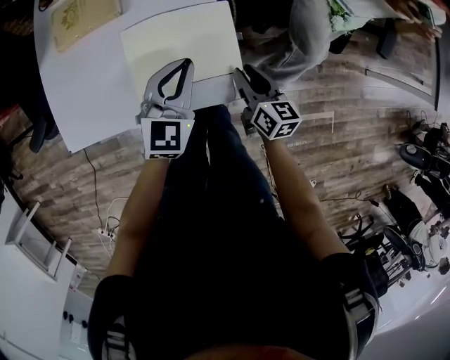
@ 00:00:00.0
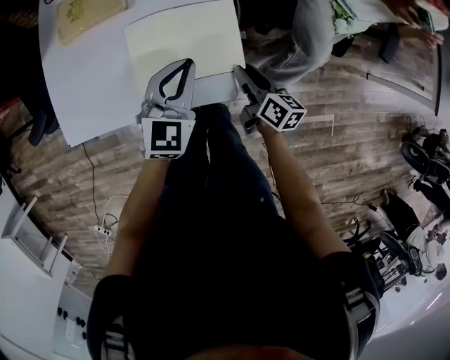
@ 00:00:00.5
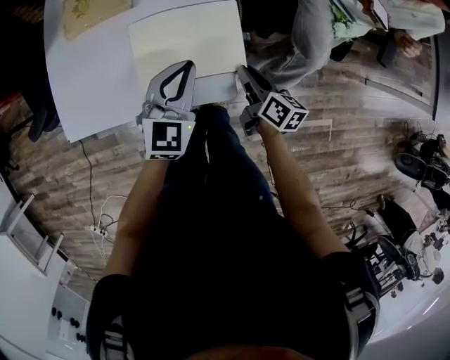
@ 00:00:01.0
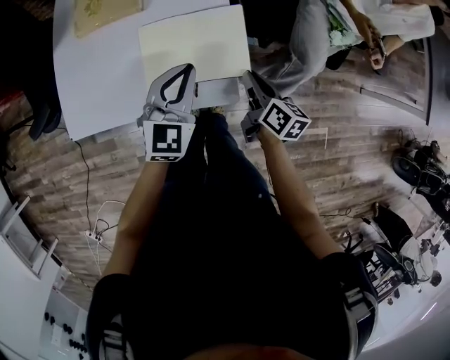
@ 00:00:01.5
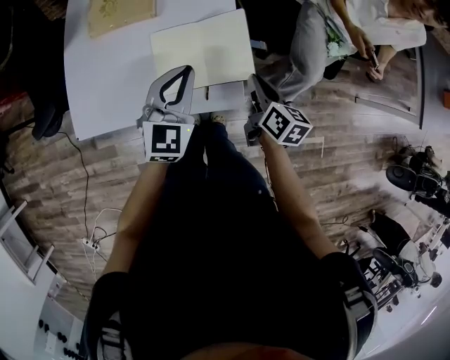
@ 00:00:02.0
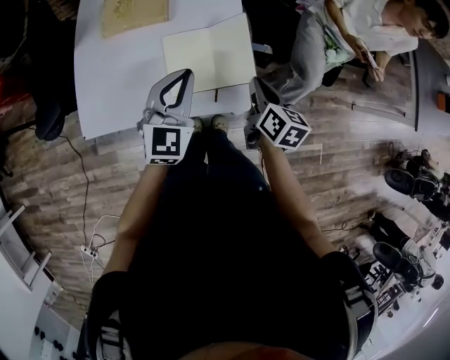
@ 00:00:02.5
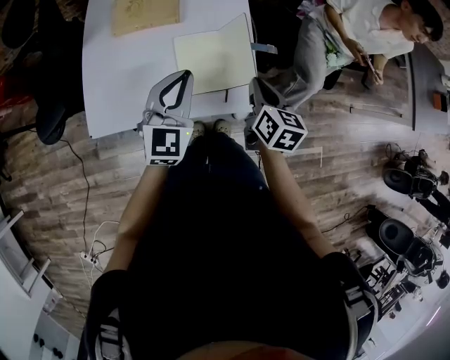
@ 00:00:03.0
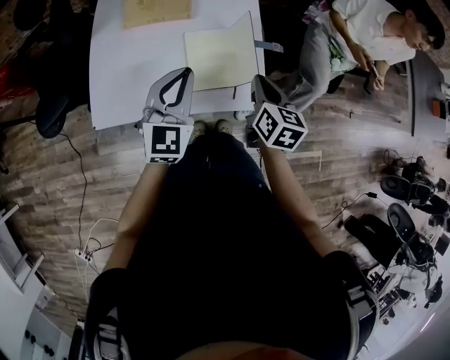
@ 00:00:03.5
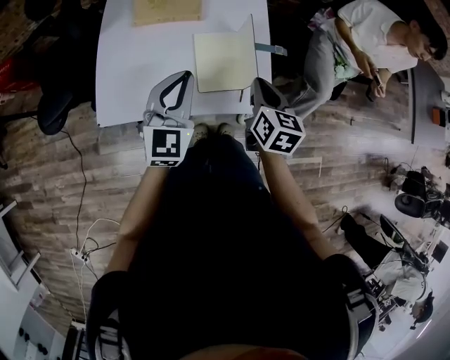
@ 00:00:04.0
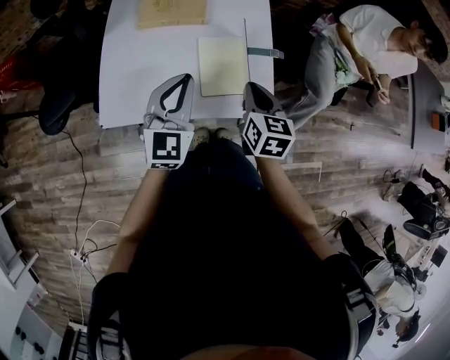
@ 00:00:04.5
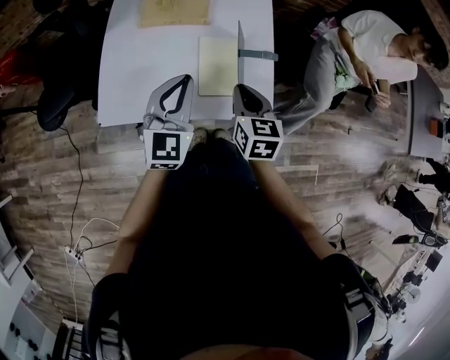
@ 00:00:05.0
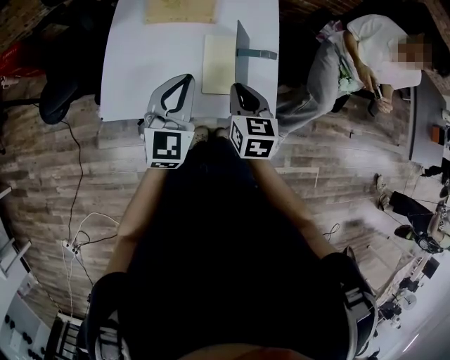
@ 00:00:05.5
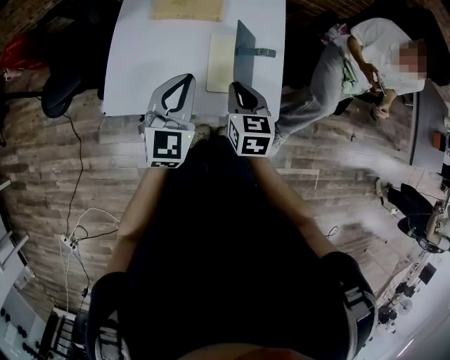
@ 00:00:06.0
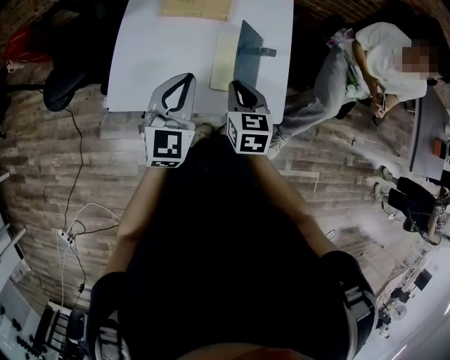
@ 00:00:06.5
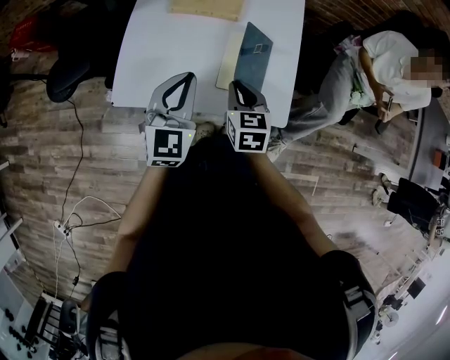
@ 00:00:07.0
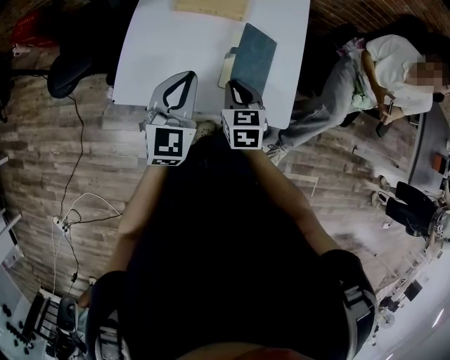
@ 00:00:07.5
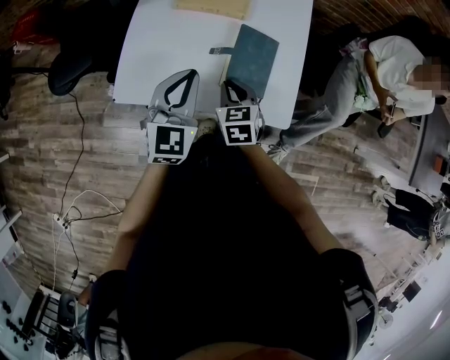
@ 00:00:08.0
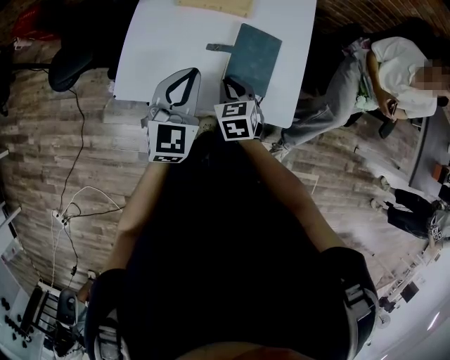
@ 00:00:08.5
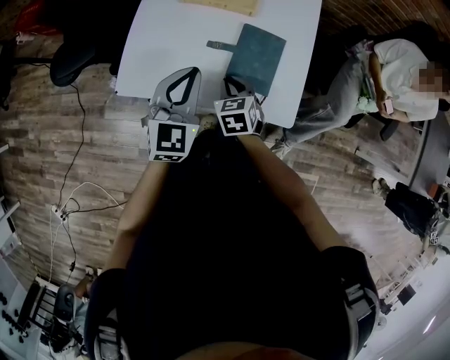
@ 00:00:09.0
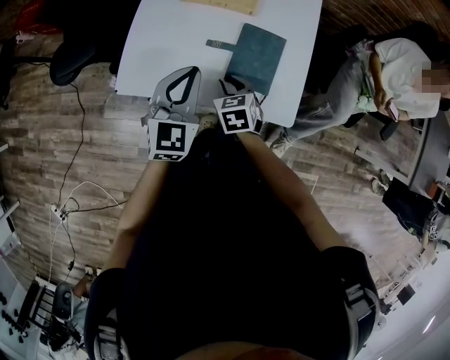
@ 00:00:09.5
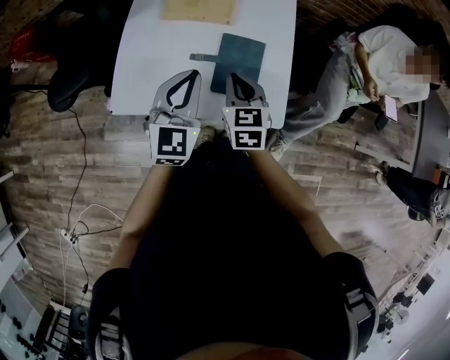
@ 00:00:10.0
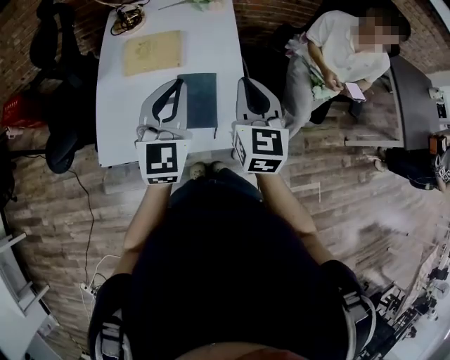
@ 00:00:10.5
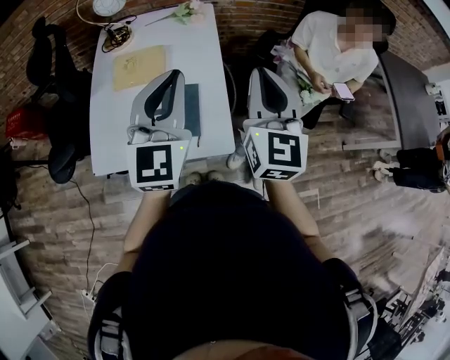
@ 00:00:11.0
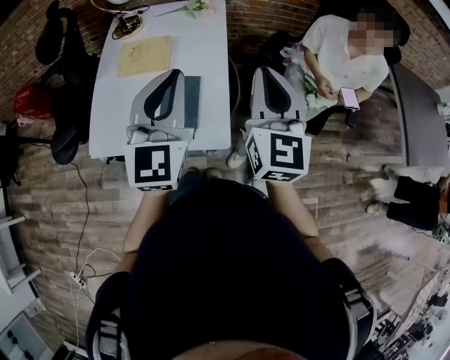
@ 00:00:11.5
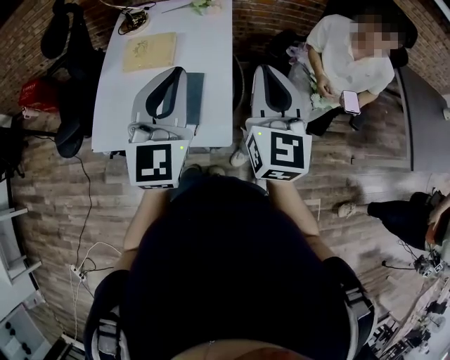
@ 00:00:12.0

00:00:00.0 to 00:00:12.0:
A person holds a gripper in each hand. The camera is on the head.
00:00:00.0 to 00:00:02.0: The left gripper moves upward and to the left, approximately 10 cm; the right gripper moves upward, roughly 10 cm.
00:00:02.0 to 00:00:04.0: The right gripper moves to the left and upward, approximately 10 cm, and rotates approximately 20 degrees; the left gripper is displaced to the left by approximately 10 cm.
00:00:04.0 to 00:00:06.0: The right gripper travels to the left by about 10 cm.
00:00:06.0 to 00:00:08.0: The right gripper goes approximately 10 cm to the left and downward.
00:00:08.0 to 00:00:10.0: The right gripper travels upward by approximately 5 cm.
00:00:10.0 to 00:00:12.0: The grippers both shift upward and to the right by approximately 30 cm. The right gripper points its fingers some 30 degrees further upward.

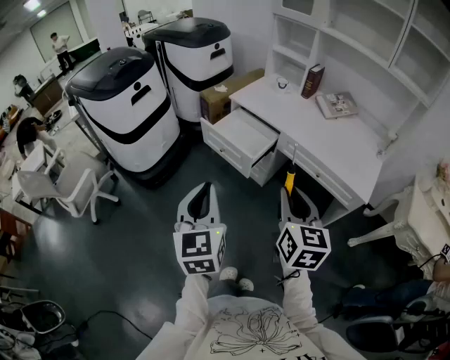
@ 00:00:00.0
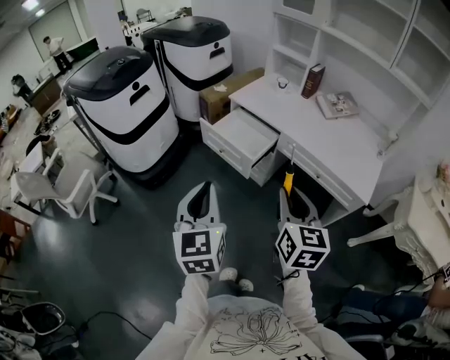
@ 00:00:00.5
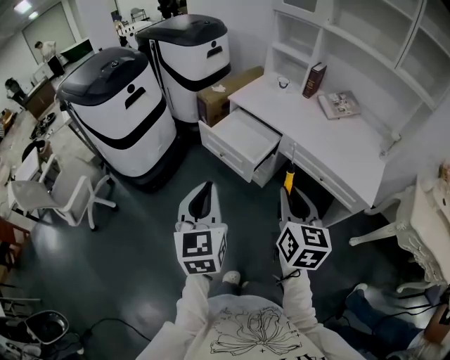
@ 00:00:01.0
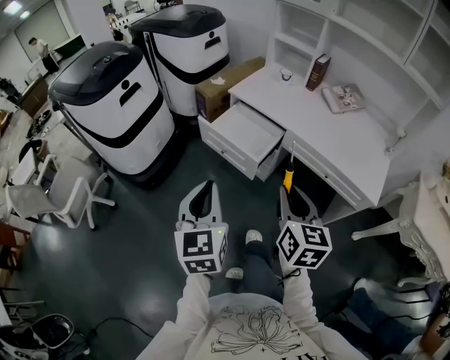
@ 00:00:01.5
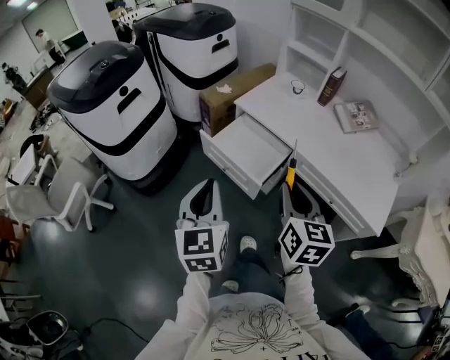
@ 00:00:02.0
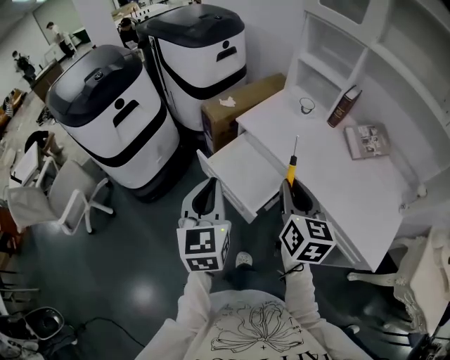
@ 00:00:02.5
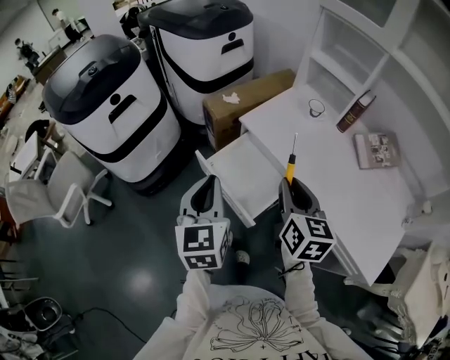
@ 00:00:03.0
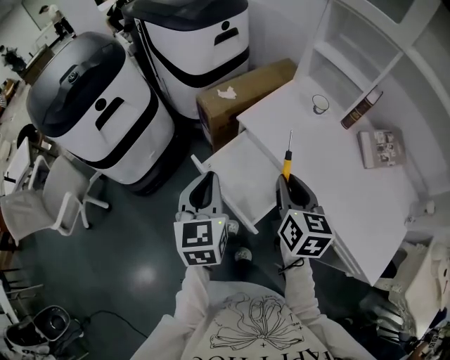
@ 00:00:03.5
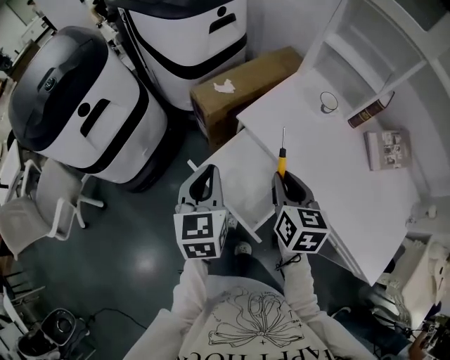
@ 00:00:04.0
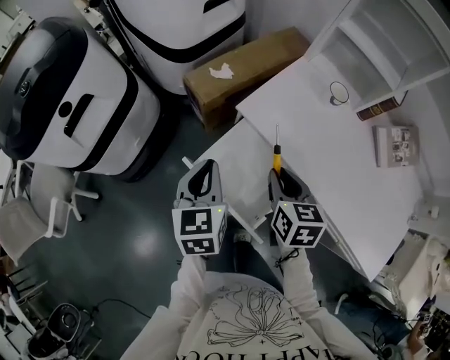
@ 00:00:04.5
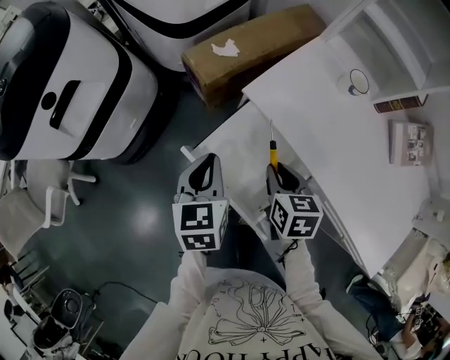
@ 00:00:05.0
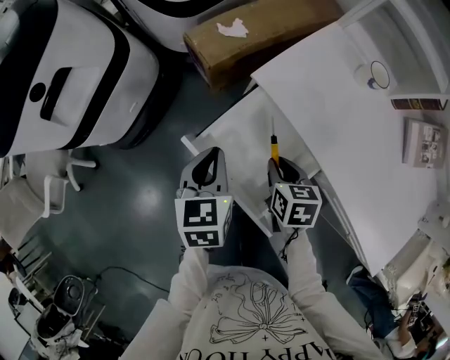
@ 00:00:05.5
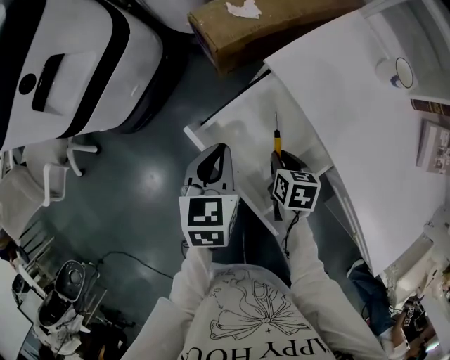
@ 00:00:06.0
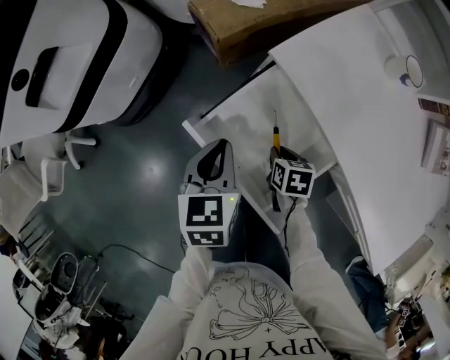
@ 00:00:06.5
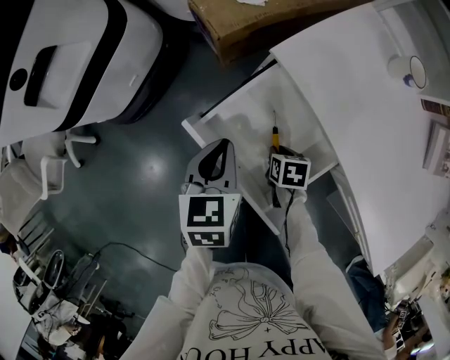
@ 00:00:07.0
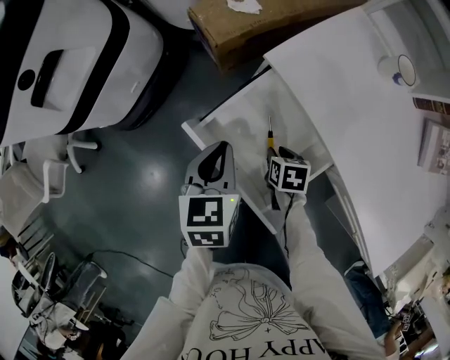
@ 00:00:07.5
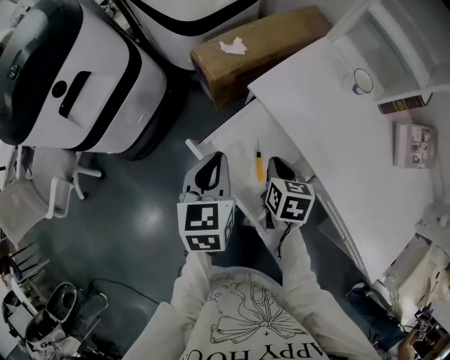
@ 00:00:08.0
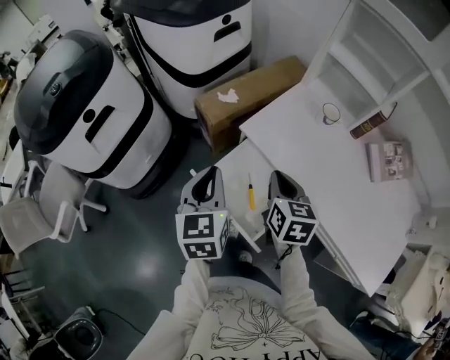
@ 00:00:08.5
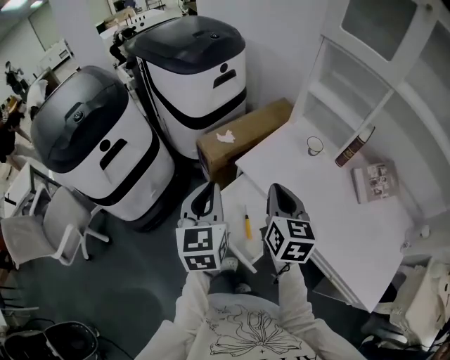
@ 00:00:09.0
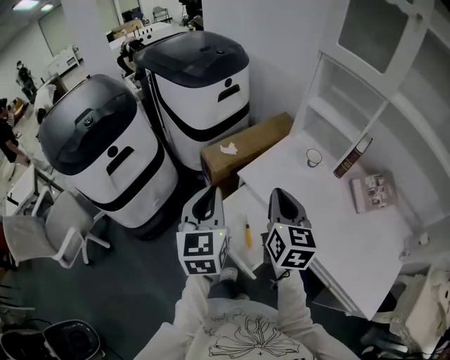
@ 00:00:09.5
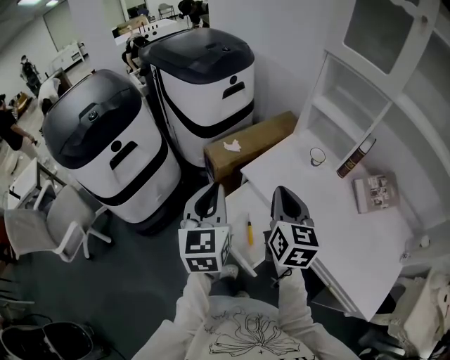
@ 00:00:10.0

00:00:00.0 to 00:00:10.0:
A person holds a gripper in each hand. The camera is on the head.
00:00:00.0 to 00:00:02.0: Both grippers move forward, roughly 20 cm.
00:00:02.0 to 00:00:04.0: Both grippers travel together forward, roughly 35 cm.
00:00:04.0 to 00:00:06.0: The left gripper travels downward by some 20 cm, and rotates about 20 degrees. The right gripper moves downward, roughly 30 cm, and angles its fingers downward, by some 30 degrees.
00:00:06.0 to 00:00:08.0: Both grippers move upward, some 10 cm.
00:00:08.0 to 00:00:10.0: Both grippers move upward, roughly 30 cm. The right gripper points its fingers about 40 degrees further upward, while the left gripper turns by some 30 degrees.

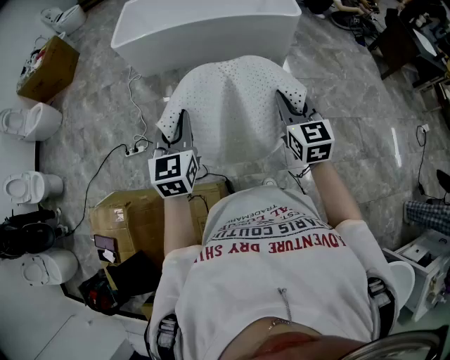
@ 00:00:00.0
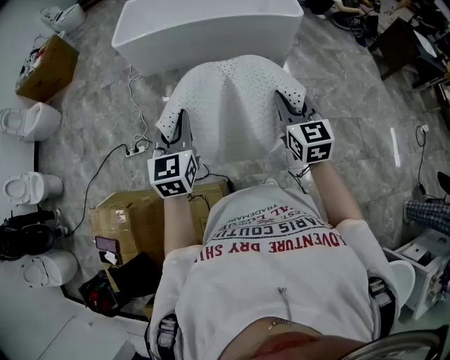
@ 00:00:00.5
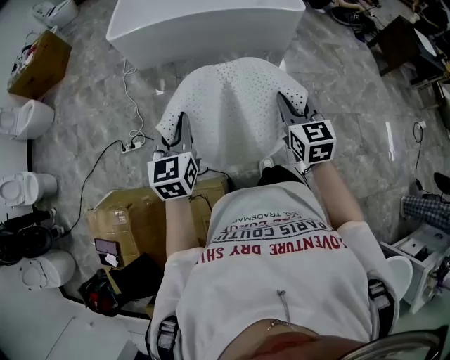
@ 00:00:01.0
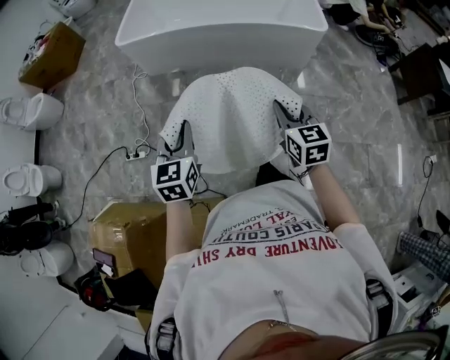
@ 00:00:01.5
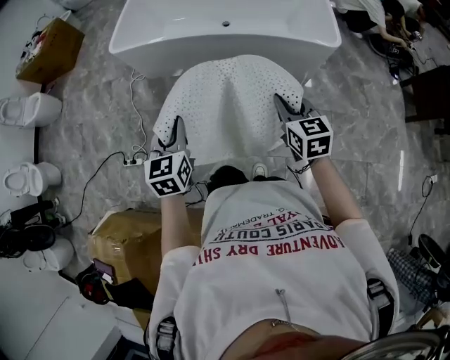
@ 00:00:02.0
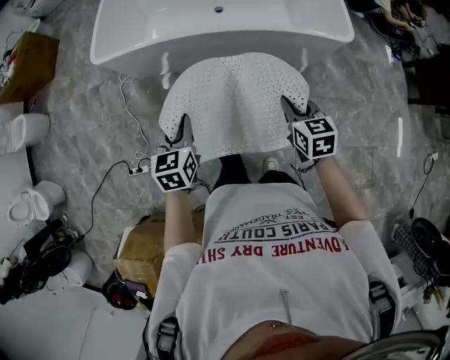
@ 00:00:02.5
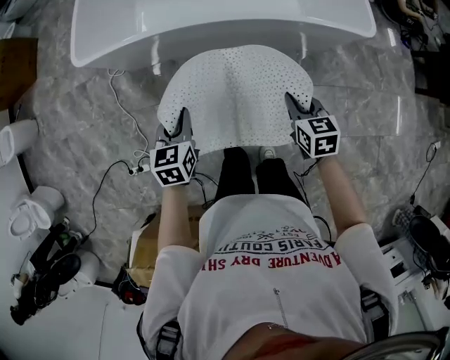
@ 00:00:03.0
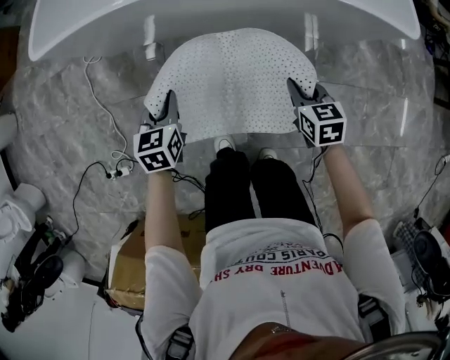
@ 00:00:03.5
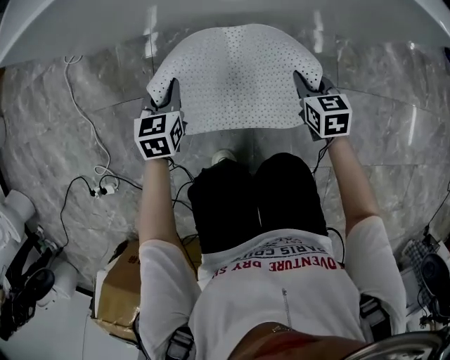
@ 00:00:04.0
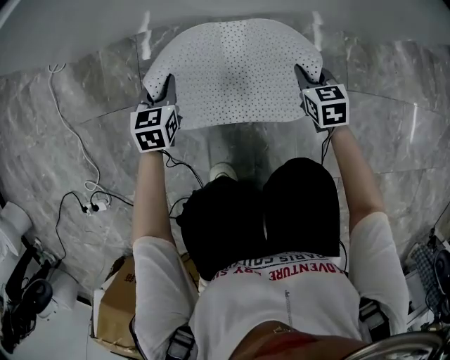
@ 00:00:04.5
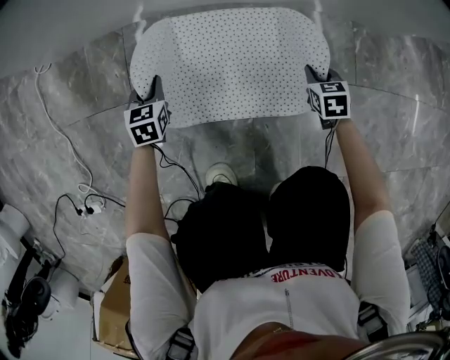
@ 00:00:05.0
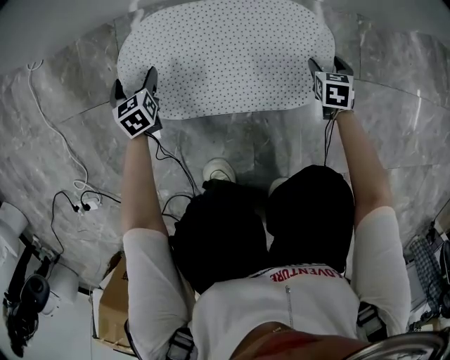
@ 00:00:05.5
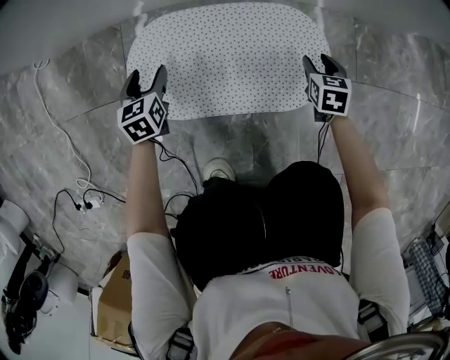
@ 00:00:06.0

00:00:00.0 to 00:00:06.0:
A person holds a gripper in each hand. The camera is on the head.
00:00:00.0 to 00:00:02.0: Both grippers move forward, roughly 35 cm.
00:00:02.0 to 00:00:04.0: The right gripper heads downward, covering some 70 cm, and rotates about 20 degrees; the left gripper heads downward and forward, covering approximately 70 cm, and rotates approximately 20 degrees.
00:00:04.0 to 00:00:06.0: The left gripper shifts roughly 20 cm downward, and opens its fingers. The right gripper goes some 20 cm downward and to the right, and opens.
